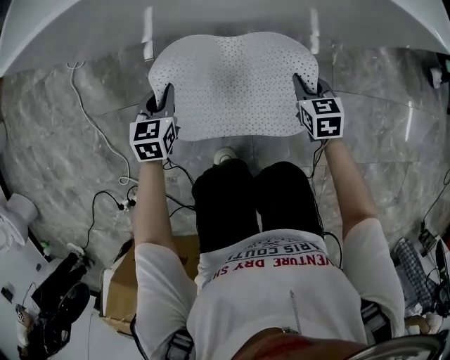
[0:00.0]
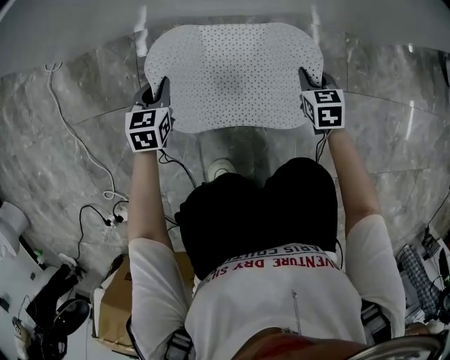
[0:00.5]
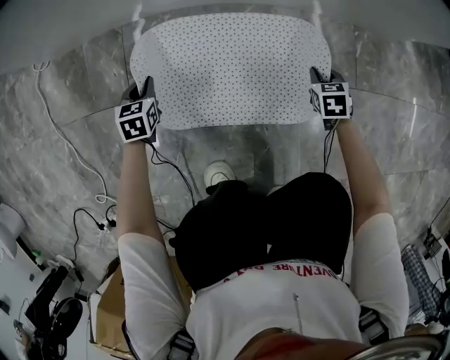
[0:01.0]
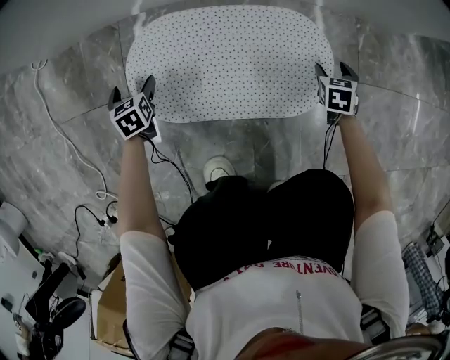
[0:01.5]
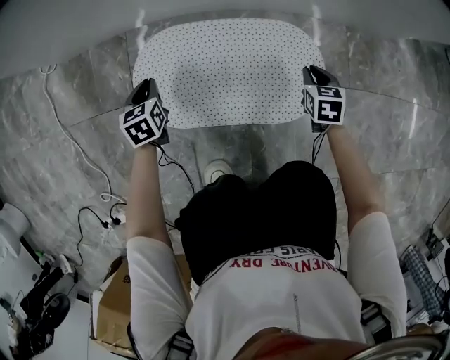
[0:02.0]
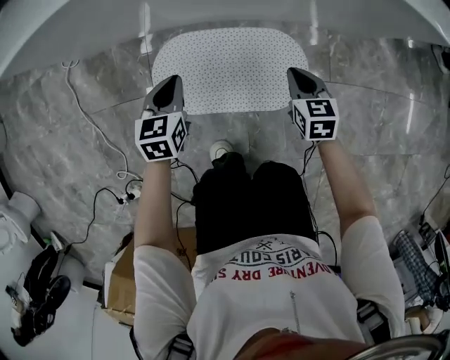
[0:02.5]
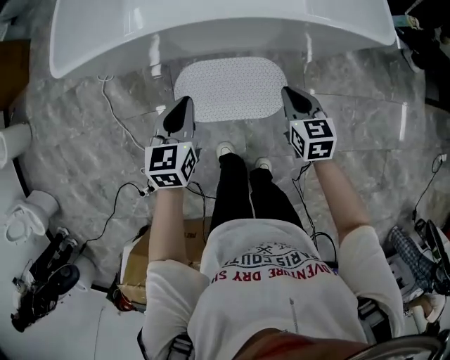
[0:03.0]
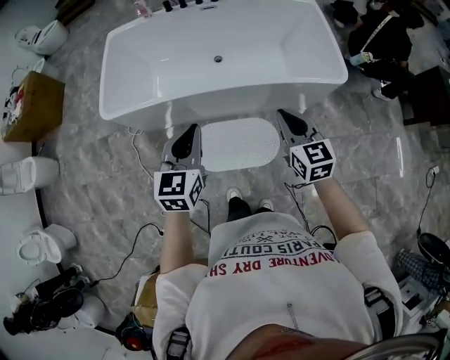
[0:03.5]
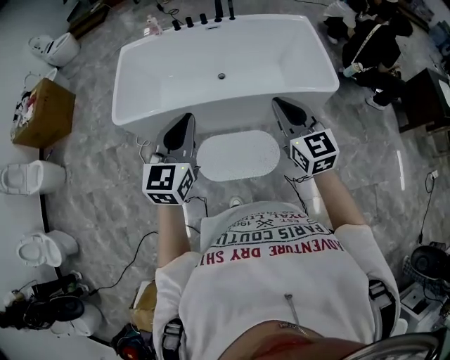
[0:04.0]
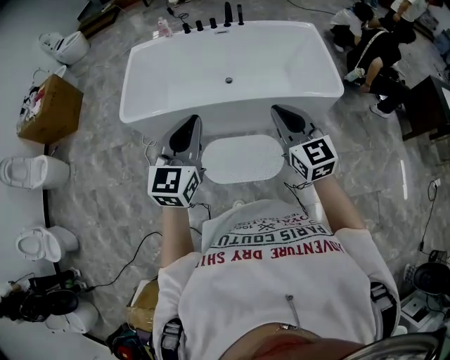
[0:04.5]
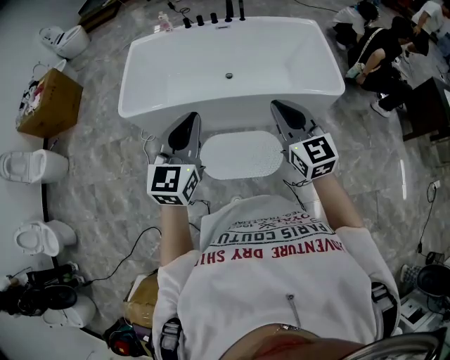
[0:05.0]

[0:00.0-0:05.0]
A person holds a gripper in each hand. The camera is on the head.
0:00.0 to 0:02.5: The left gripper is displaced to the right by roughly 5 cm, goes downward and returns, some 30 cm each way, and opens and closes again, while the right gripper moves some 25 cm downward and comes back, and opens, then closes again.
0:02.5 to 0:05.0: The grippers both shift upward by some 70 cm. The left gripper points its fingers some 40 degrees further upward, while the right gripper tilts its fingers approximately 40 degrees upward.

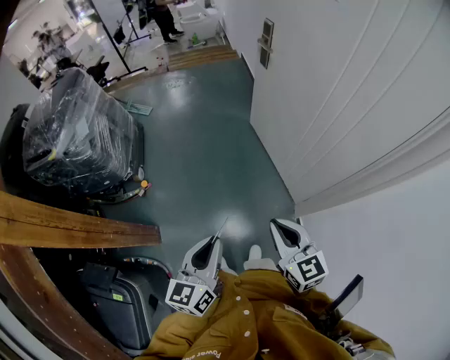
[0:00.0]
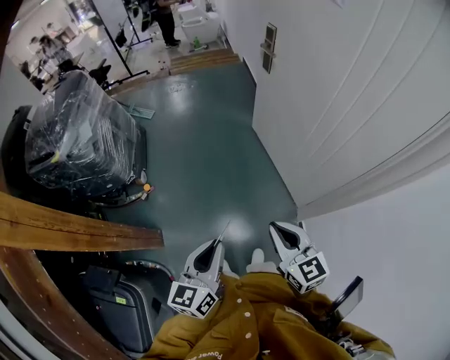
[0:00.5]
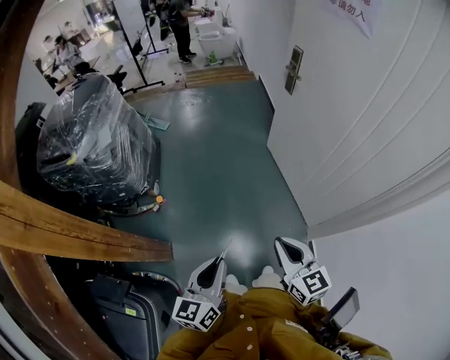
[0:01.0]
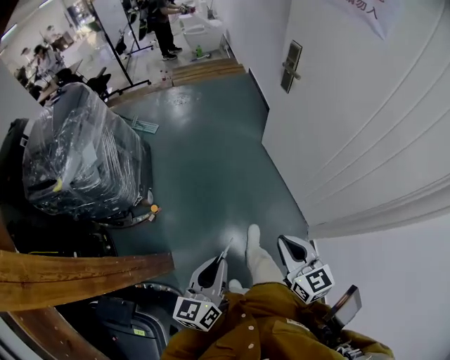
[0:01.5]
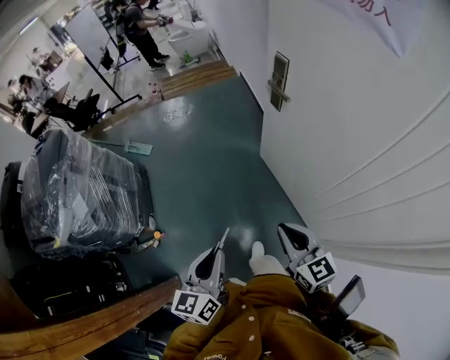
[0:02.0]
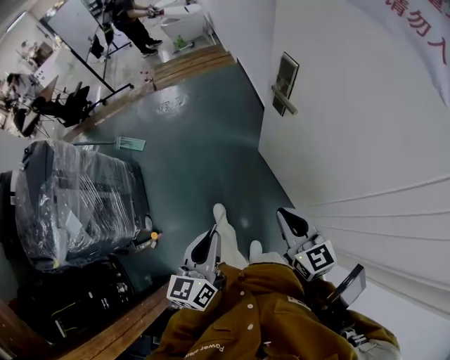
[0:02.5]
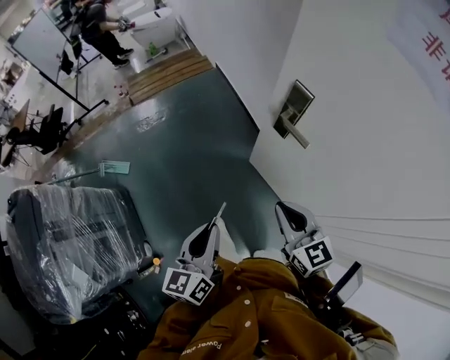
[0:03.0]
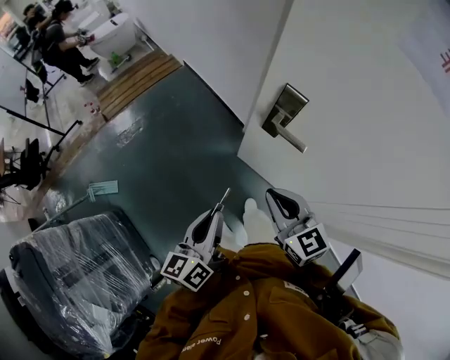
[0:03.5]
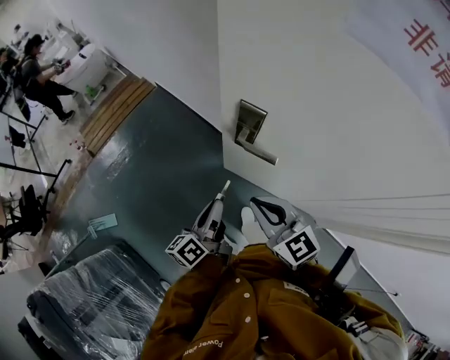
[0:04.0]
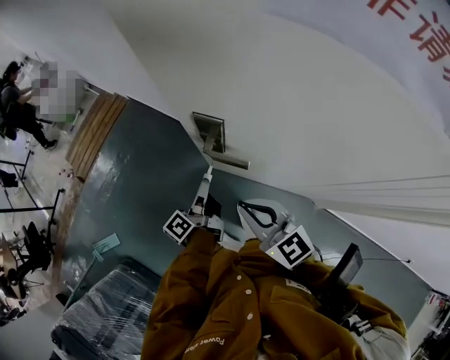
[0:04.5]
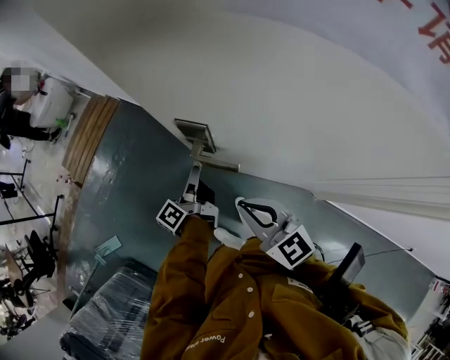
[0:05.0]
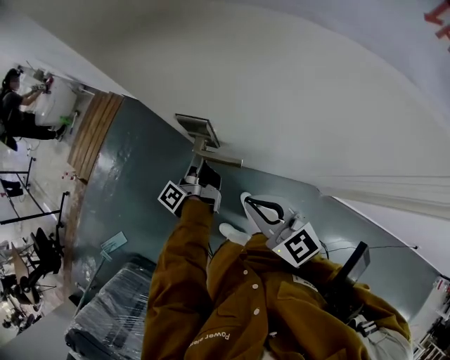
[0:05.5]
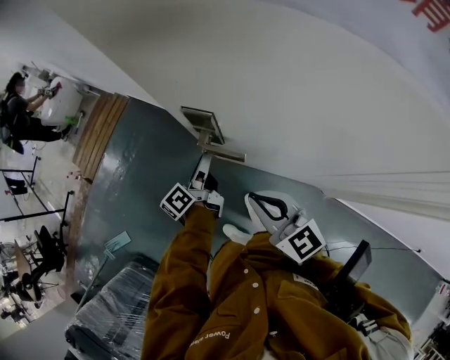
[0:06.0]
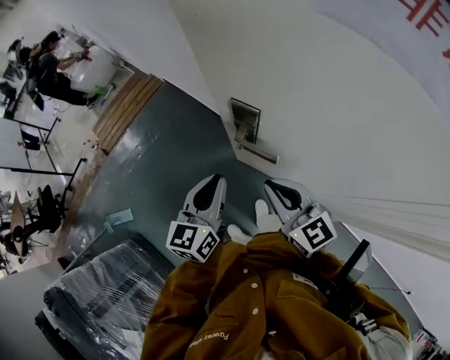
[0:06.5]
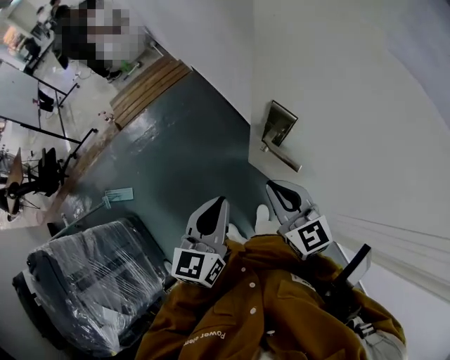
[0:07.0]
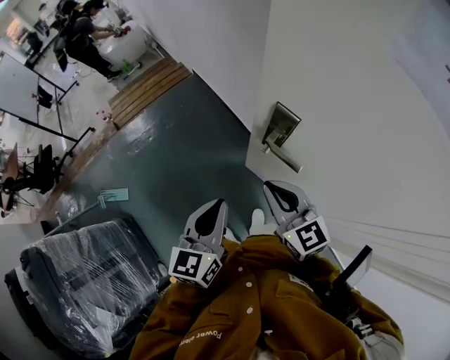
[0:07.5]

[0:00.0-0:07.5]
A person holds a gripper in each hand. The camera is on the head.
0:00.0 to 0:02.0: The grippers both shift forward by roughly 35 cm.
0:02.0 to 0:04.0: The pair of grippers is taken approximately 50 cm. The right gripper changes its angle by roughly 20 degrees; the left gripper changes its angle by some 50 degrees.
0:04.0 to 0:05.5: The right gripper shifts approximately 5 cm to the right, while the left gripper goes some 20 cm forward, to the right and downward, and rotates about 30 degrees.
0:05.5 to 0:07.5: The left gripper heads backward, upward and to the left, covering roughly 30 cm, rolls clockwise, seen from behind, by some 80 degrees, and opens, then closes once more. The right gripper moves to the left, approximately 5 cm.

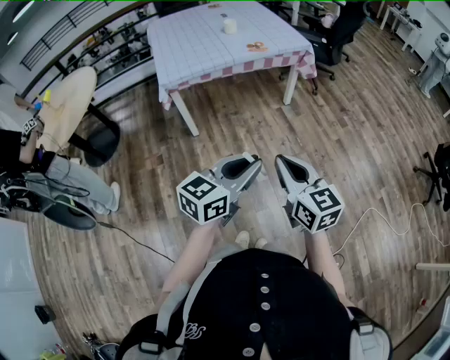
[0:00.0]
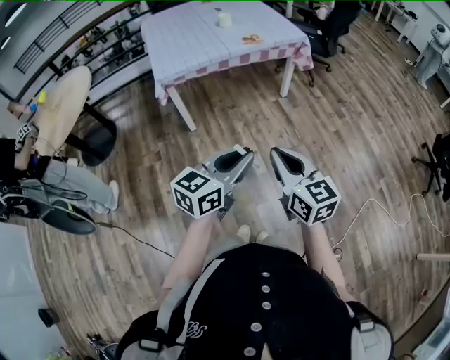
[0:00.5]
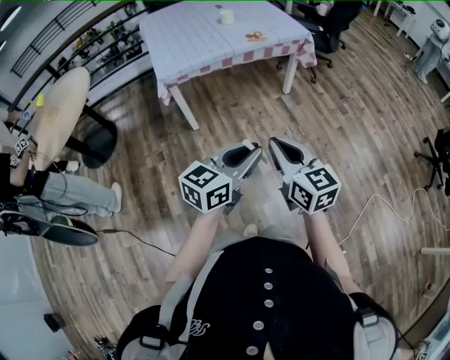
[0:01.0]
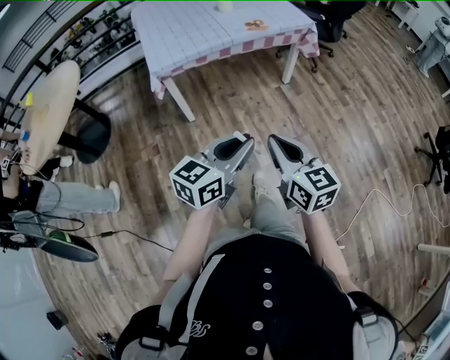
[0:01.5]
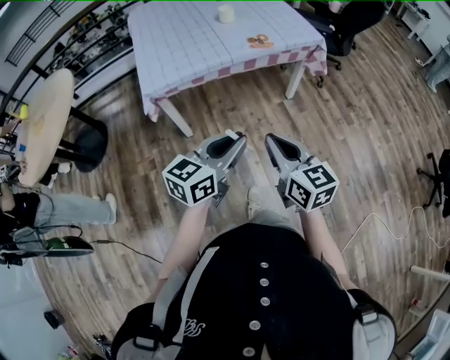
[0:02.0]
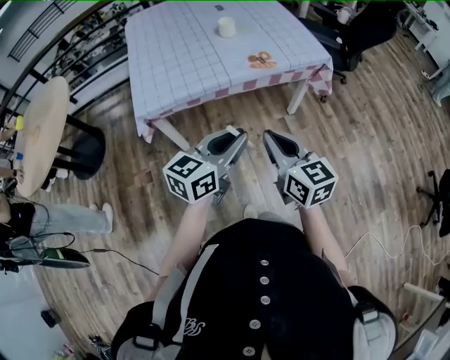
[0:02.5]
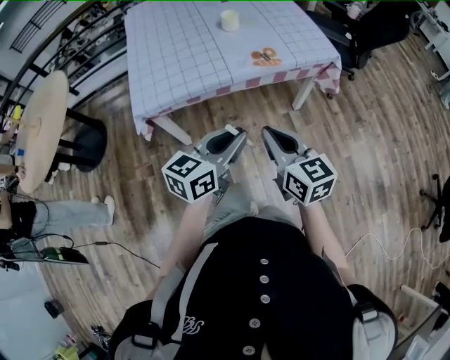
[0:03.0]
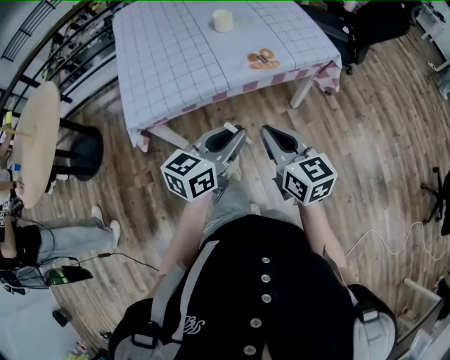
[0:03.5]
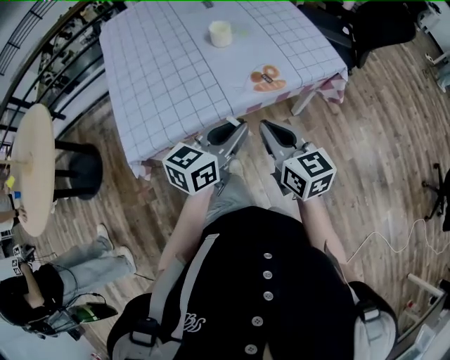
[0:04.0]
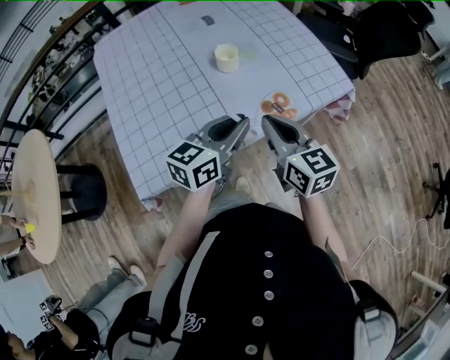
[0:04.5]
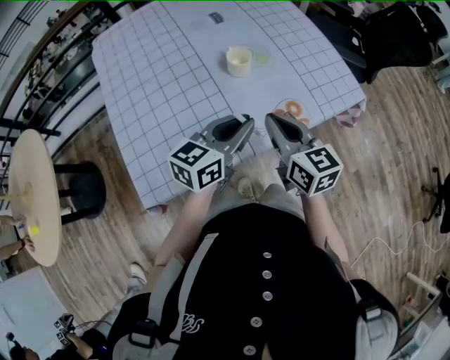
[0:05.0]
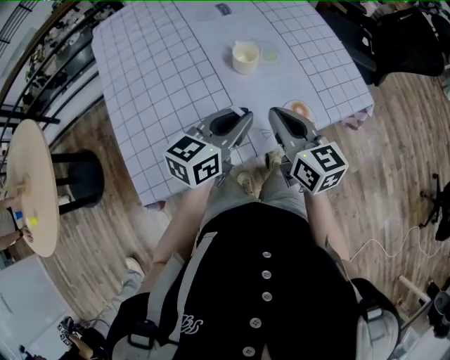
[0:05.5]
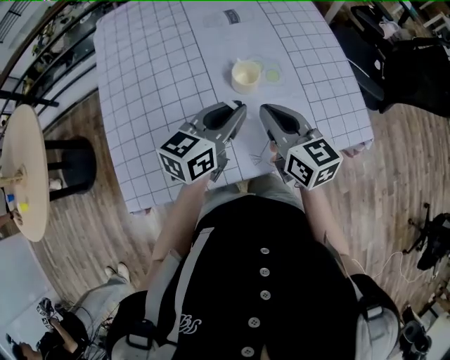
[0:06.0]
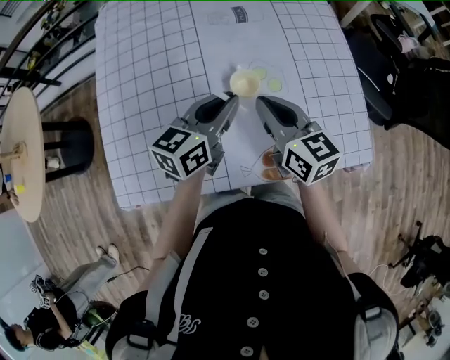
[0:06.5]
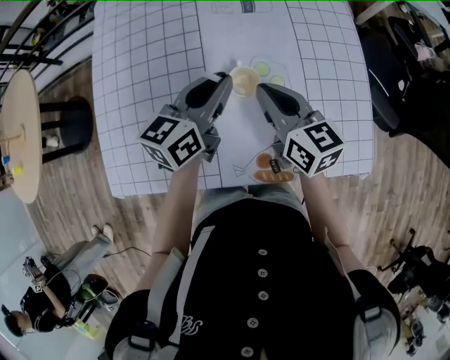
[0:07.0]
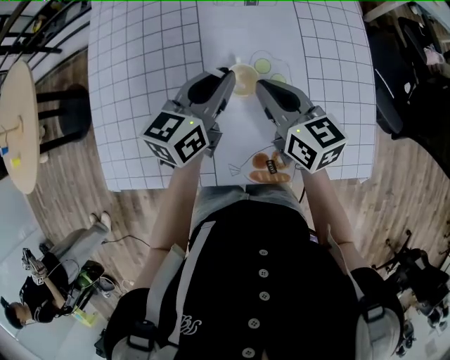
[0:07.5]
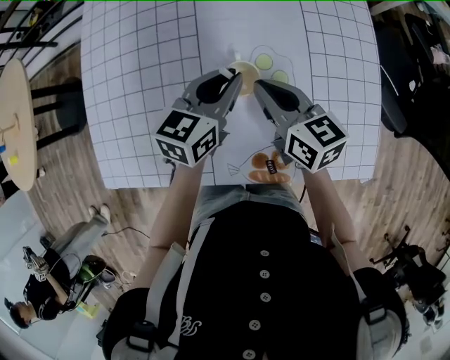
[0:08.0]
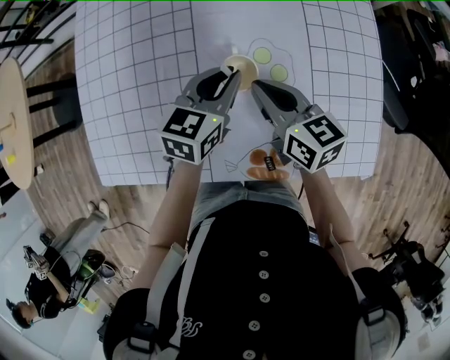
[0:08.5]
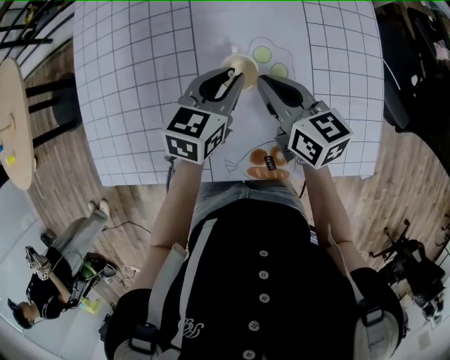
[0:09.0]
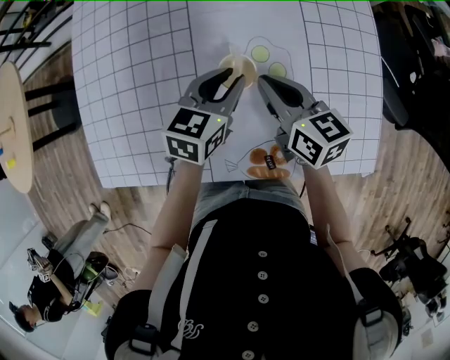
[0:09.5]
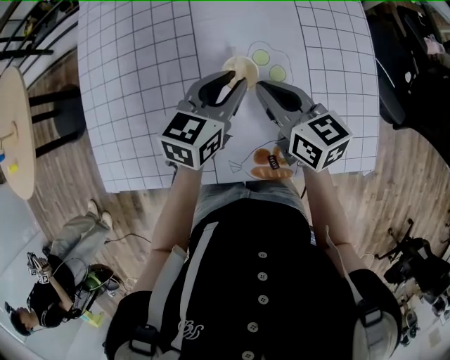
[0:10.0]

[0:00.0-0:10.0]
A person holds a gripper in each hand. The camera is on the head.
0:00.0 to 0:02.0: The two grippers go some 25 cm forward.
0:02.0 to 0:04.0: Both grippers move forward, some 30 cm.
0:04.0 to 0:06.0: The two grippers go some 25 cm forward.
0:06.0 to 0:08.0: The grippers both shift forward and downward by about 15 cm. The left gripper changes its angle by roughly 20 degrees.
0:08.0 to 0:10.0: The grippers make only small movements.

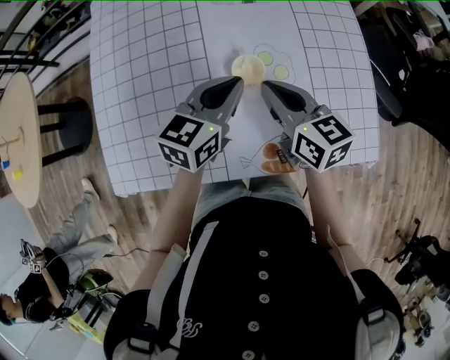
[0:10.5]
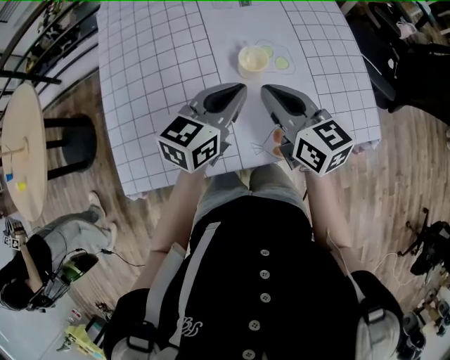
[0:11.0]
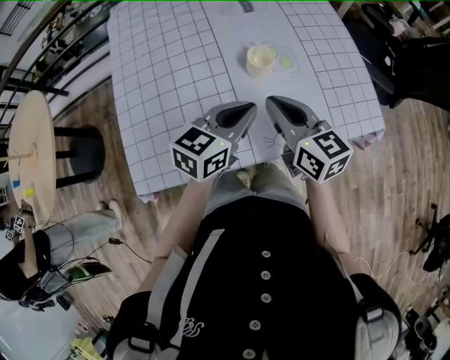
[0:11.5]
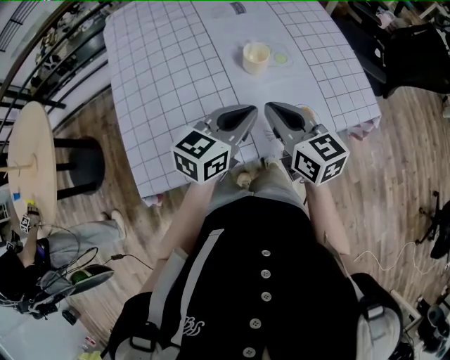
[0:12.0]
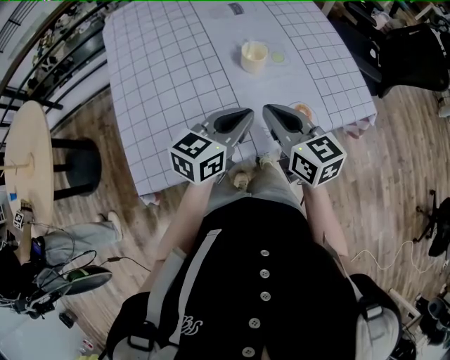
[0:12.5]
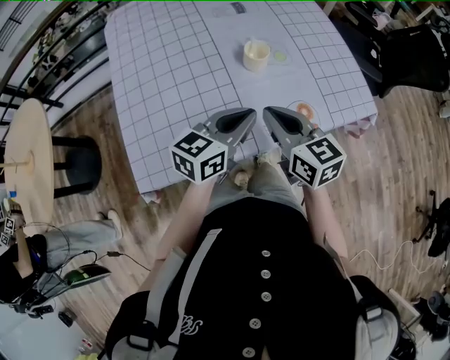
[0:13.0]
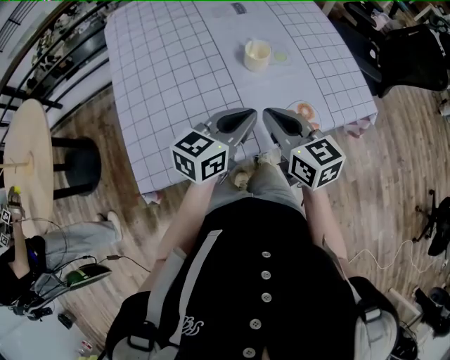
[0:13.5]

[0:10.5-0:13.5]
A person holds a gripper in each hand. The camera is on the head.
0:10.5 to 0:12.0: The two grippers go about 15 cm backward.
0:12.0 to 0:13.5: There are only small adjustments of the grippers.

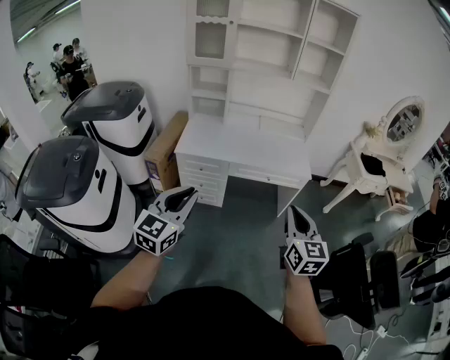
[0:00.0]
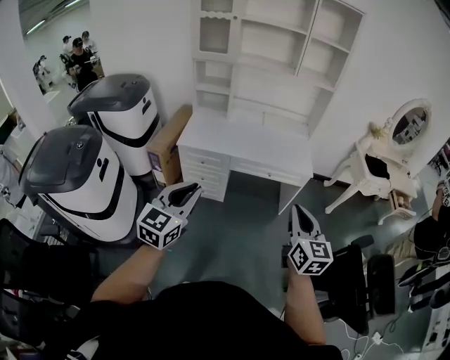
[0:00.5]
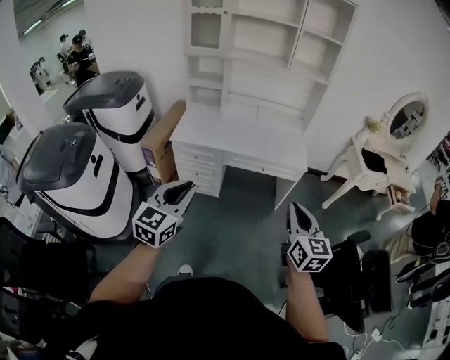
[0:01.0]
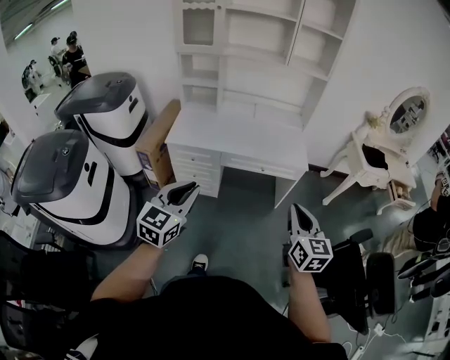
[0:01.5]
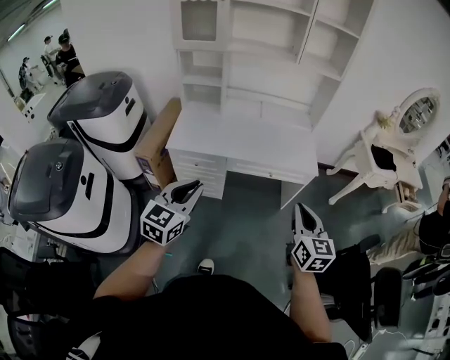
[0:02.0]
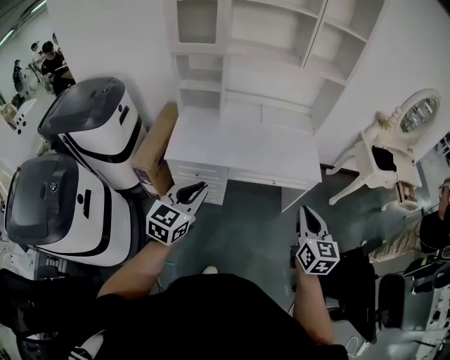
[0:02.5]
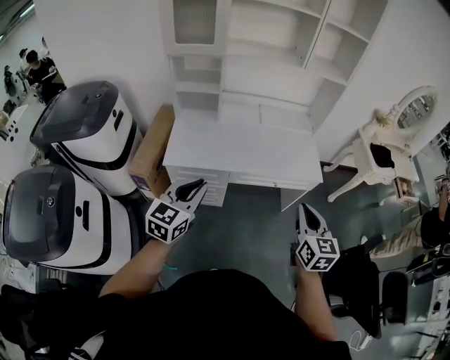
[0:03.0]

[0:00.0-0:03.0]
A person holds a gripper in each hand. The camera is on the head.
0:00.0 to 0:01.5: Both grippers travel together to the right, roughly 5 cm.
0:01.5 to 0:03.0: Both grippers move forward and to the left, roughly 25 cm.
